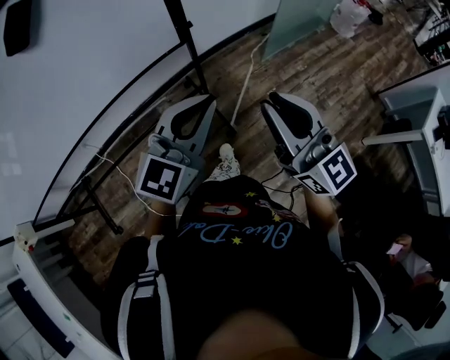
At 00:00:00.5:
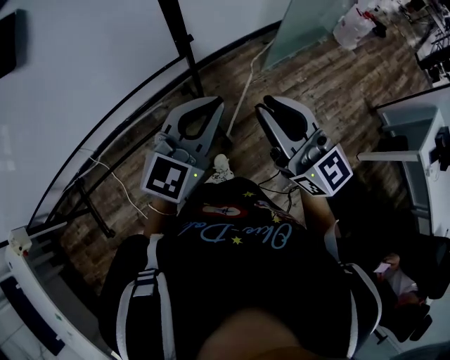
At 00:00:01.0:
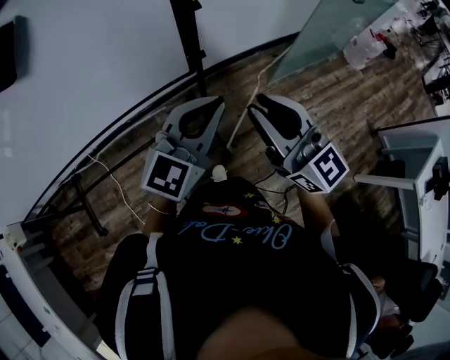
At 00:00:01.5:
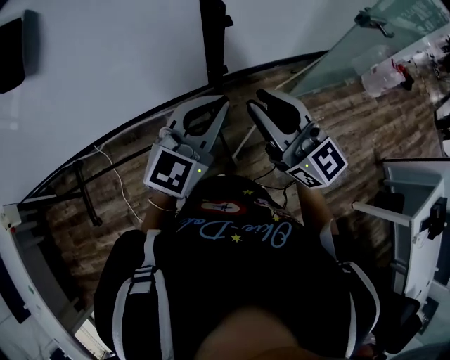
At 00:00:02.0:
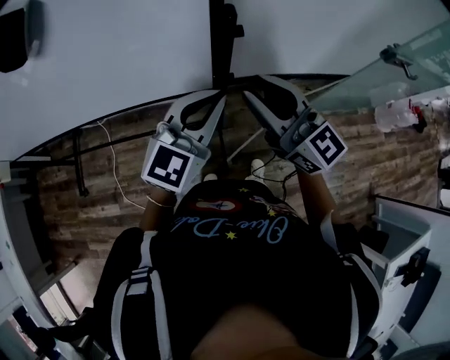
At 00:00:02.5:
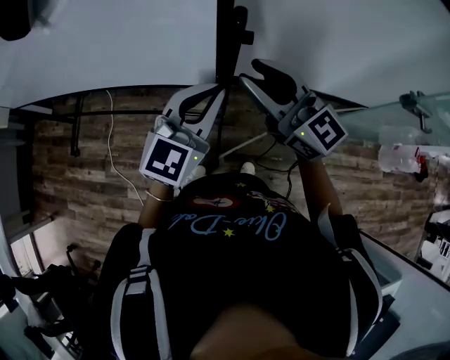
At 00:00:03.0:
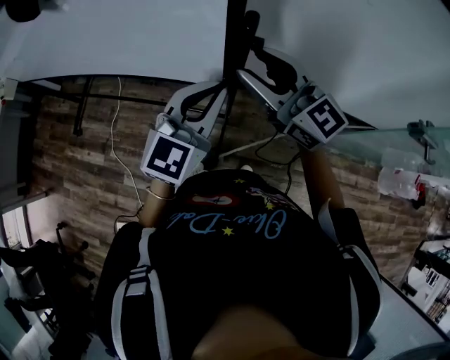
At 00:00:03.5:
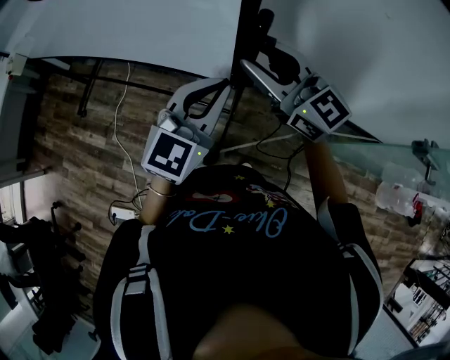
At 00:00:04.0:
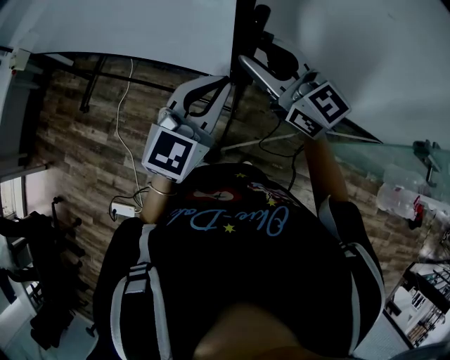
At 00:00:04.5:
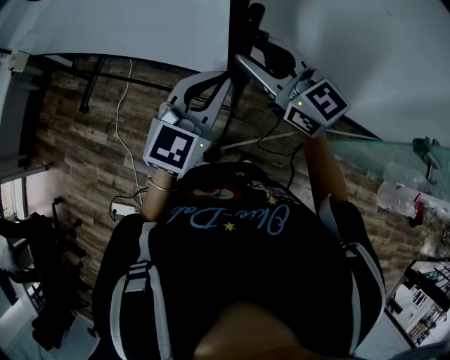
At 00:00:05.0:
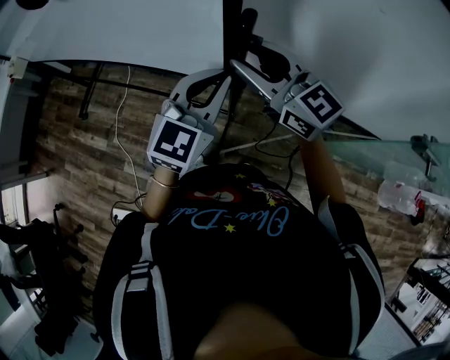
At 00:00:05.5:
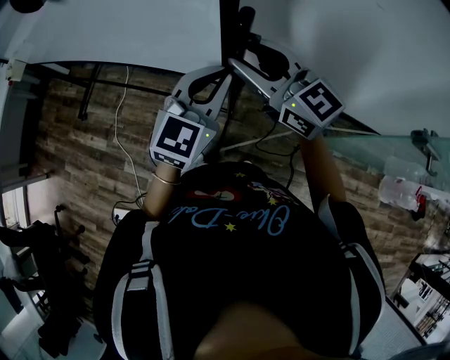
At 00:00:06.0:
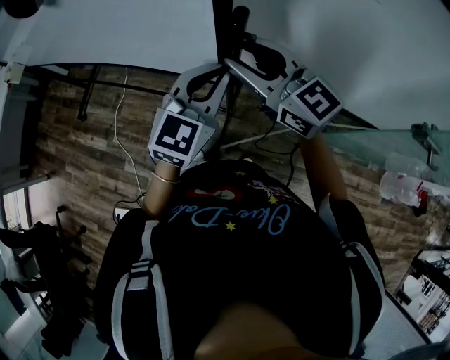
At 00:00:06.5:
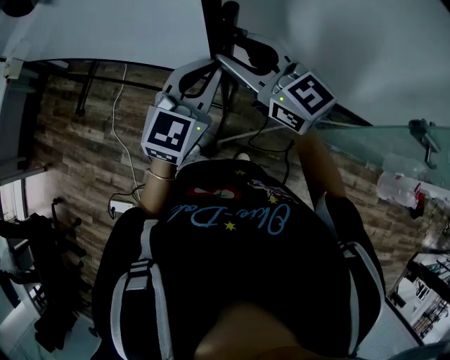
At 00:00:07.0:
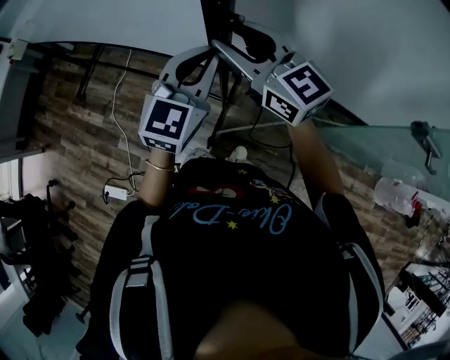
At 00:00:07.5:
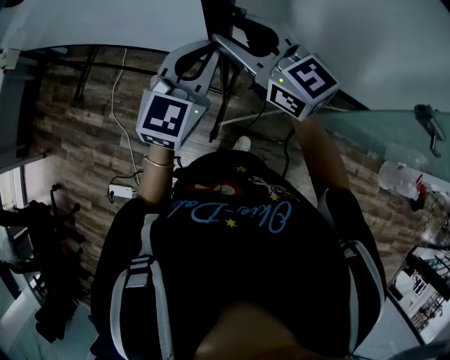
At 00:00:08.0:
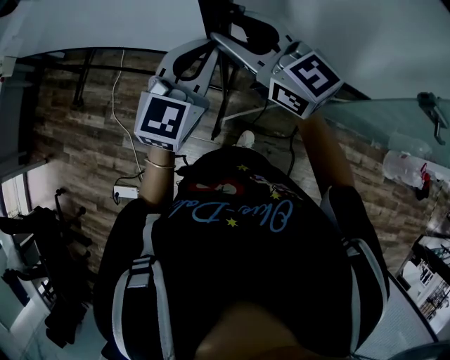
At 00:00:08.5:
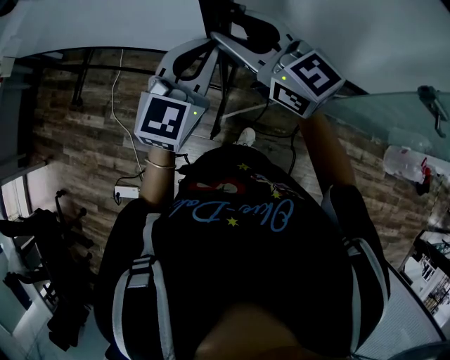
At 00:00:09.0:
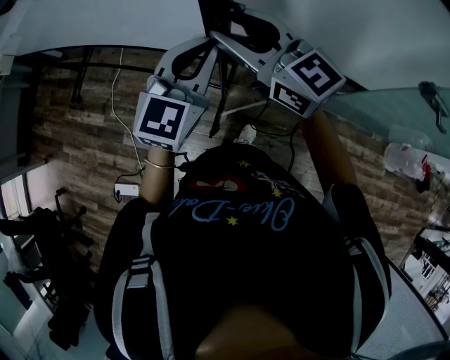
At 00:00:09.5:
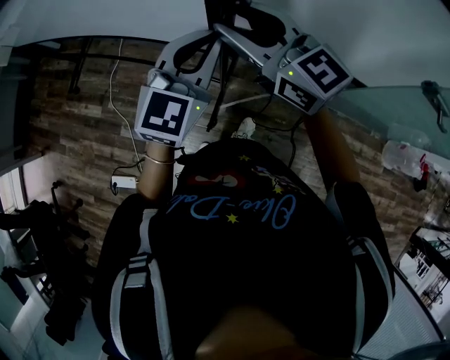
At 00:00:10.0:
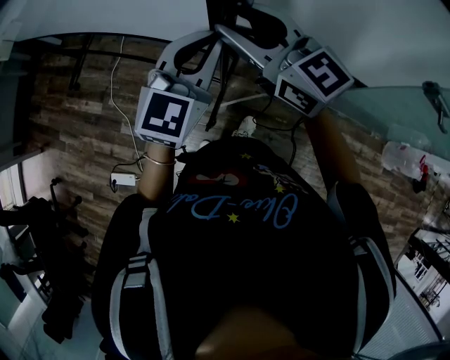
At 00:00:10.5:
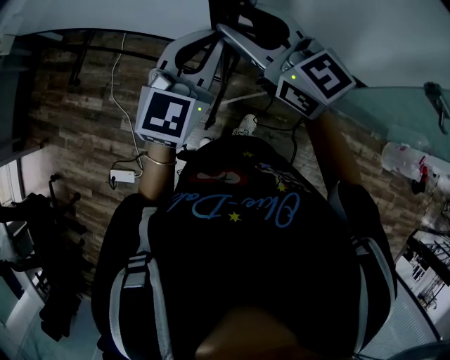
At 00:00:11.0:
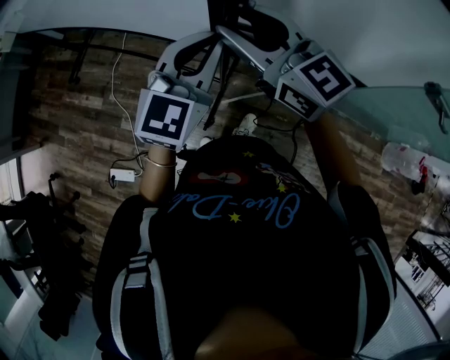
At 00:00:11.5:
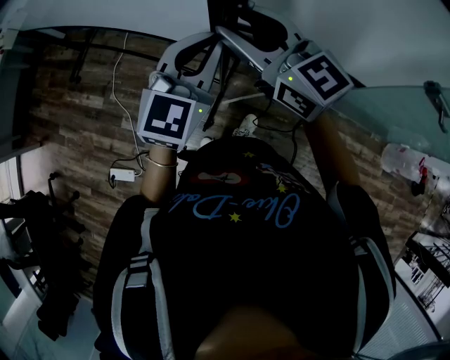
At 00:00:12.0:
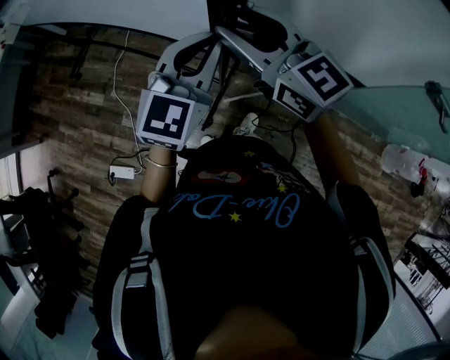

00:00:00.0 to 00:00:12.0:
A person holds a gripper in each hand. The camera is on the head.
00:00:00.0 to 00:00:02.0: The left gripper changes place by some 20 cm, and changes its angle by roughly 30 degrees; the right gripper shifts by approximately 25 cm, and rotates approximately 30 degrees.
00:00:02.0 to 00:00:04.0: The left gripper turns by roughly 30 degrees, while the right gripper changes place by approximately 10 cm, and swivels roughly 30 degrees.
00:00:04.0 to 00:00:08.0: The grippers move only a little.
00:00:08.0 to 00:00:10.0: The grippers move only a little.
00:00:10.0 to 00:00:12.0: The right gripper changes place by about 5 cm.

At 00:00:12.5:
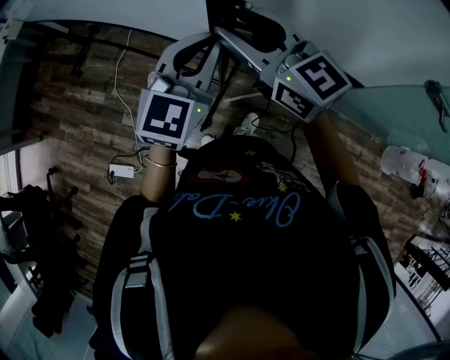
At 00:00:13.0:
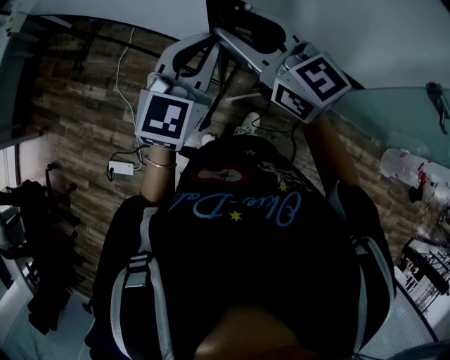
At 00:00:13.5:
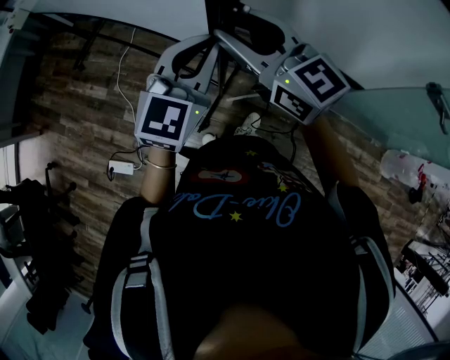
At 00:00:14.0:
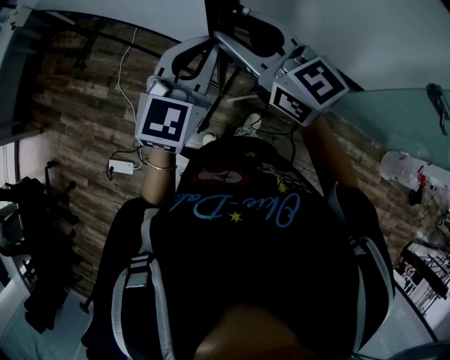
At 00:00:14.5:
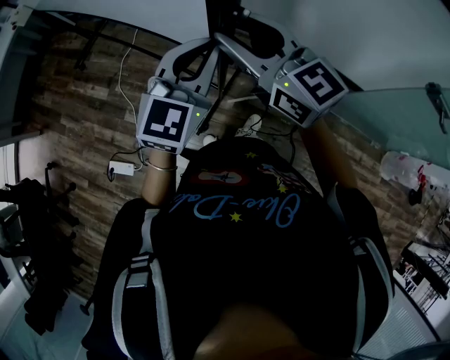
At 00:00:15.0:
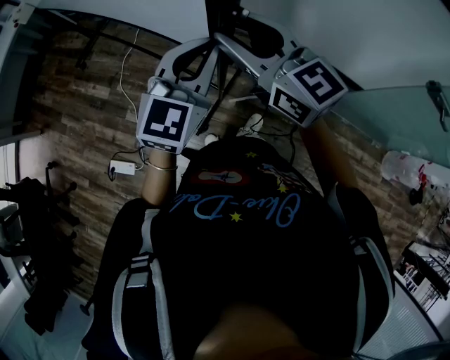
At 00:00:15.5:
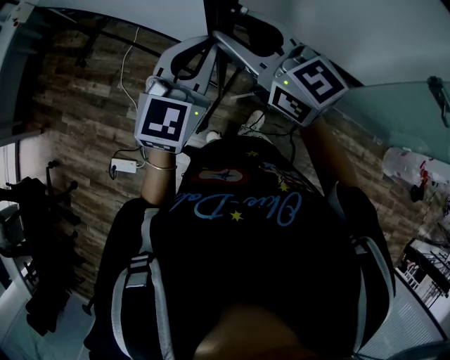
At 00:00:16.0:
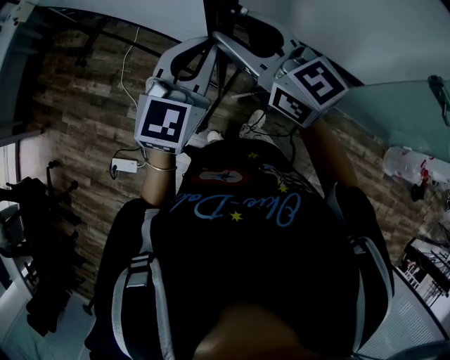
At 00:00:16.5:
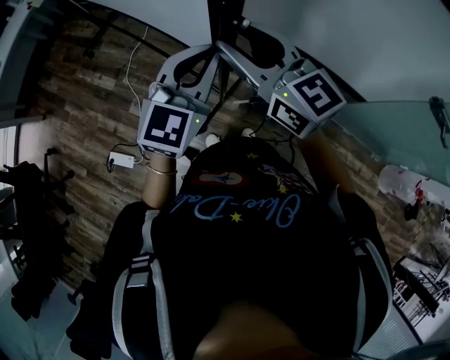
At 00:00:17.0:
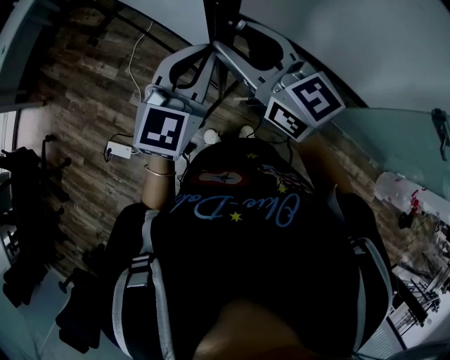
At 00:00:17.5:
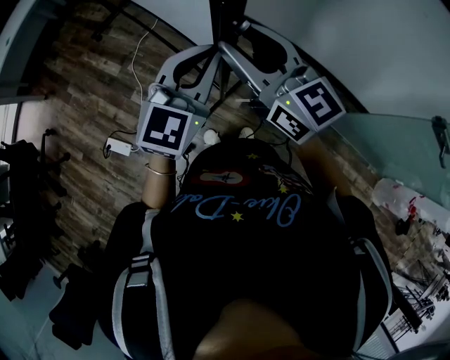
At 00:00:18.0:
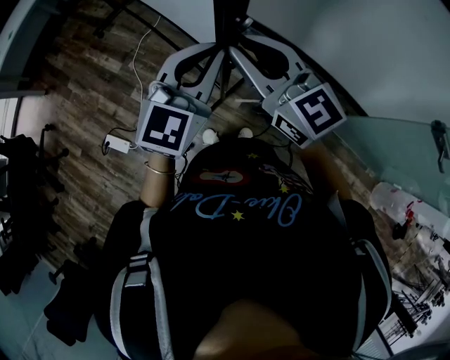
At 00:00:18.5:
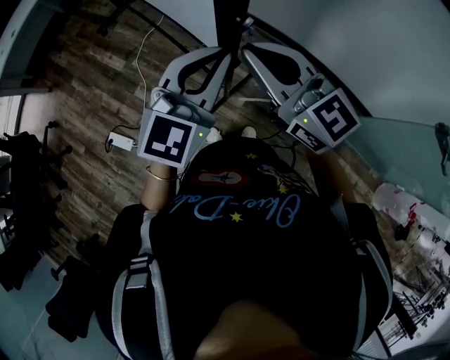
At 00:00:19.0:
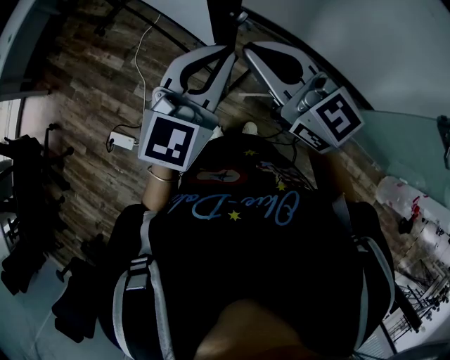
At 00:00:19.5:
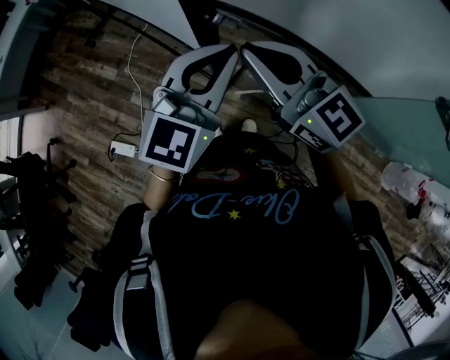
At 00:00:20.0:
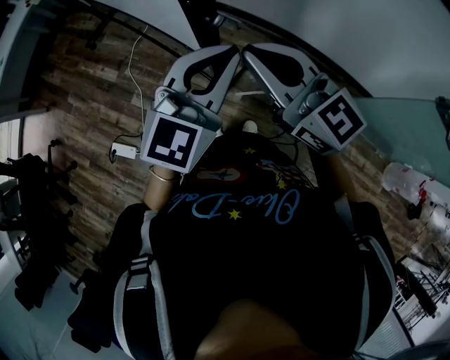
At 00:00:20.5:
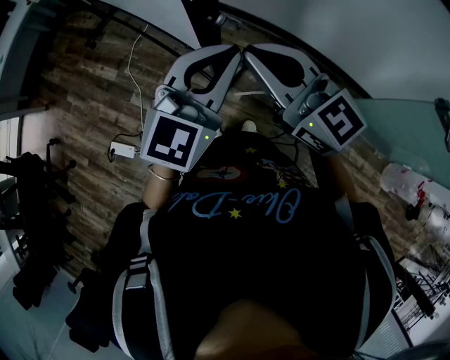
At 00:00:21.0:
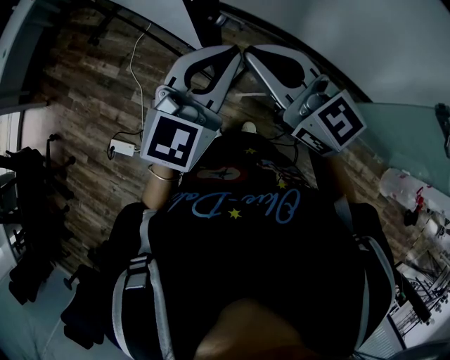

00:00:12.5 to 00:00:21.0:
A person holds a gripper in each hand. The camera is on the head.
00:00:12.5 to 00:00:14.5: The grippers make only small movements.
00:00:14.5 to 00:00:16.5: The grippers make only small movements.
00:00:16.5 to 00:00:19.0: The right gripper closes.
00:00:19.0 to 00:00:21.0: The grippers move only a little.

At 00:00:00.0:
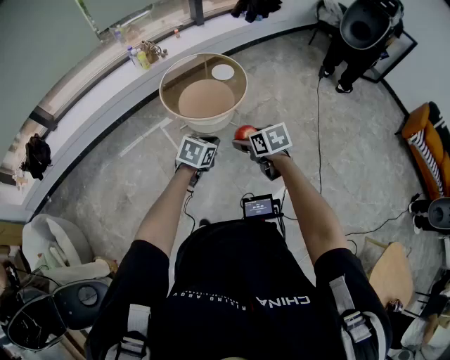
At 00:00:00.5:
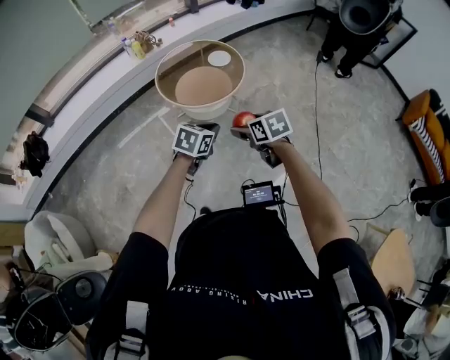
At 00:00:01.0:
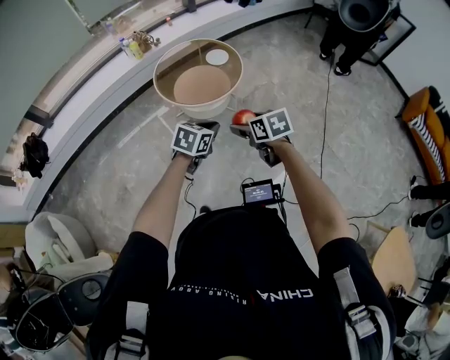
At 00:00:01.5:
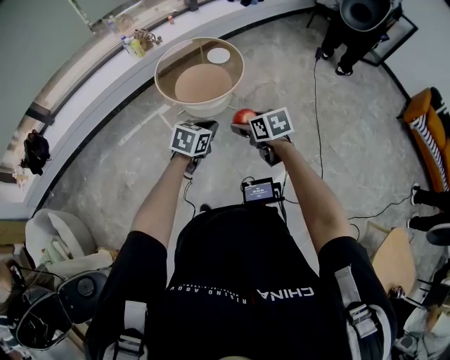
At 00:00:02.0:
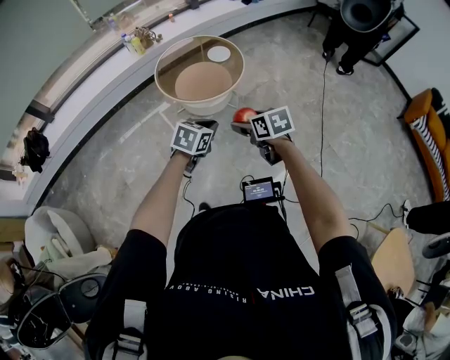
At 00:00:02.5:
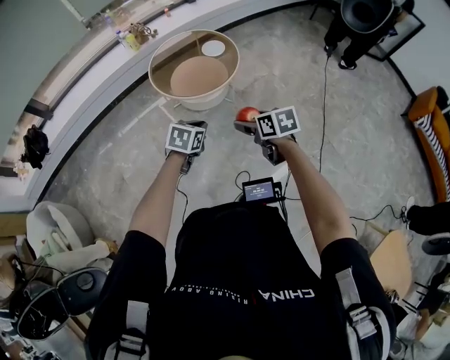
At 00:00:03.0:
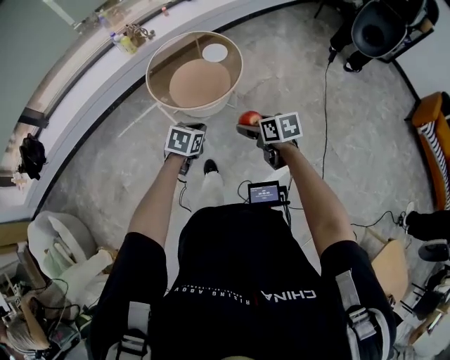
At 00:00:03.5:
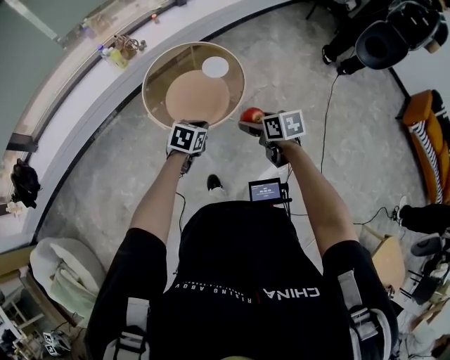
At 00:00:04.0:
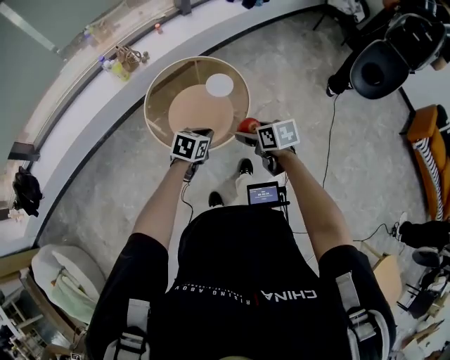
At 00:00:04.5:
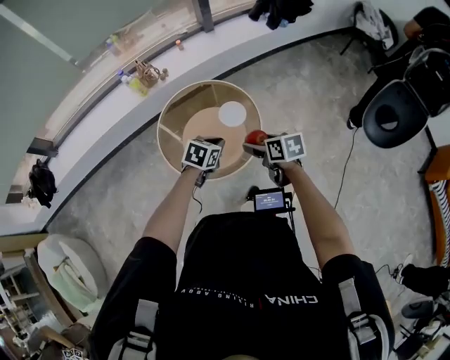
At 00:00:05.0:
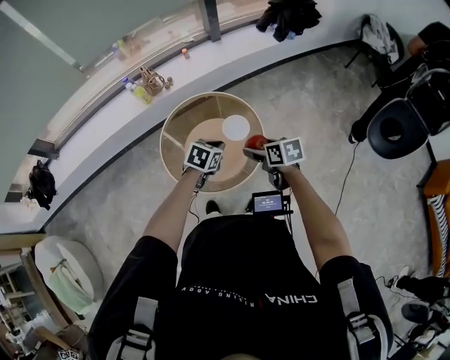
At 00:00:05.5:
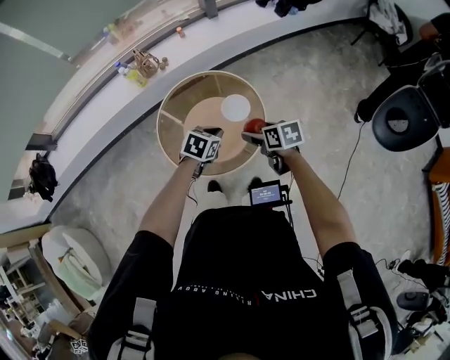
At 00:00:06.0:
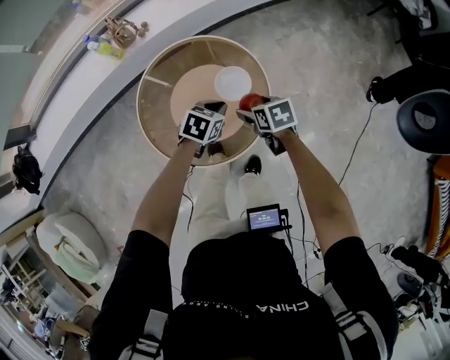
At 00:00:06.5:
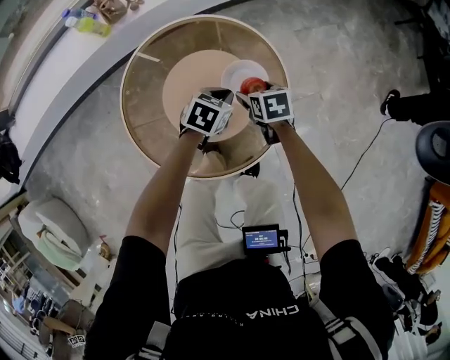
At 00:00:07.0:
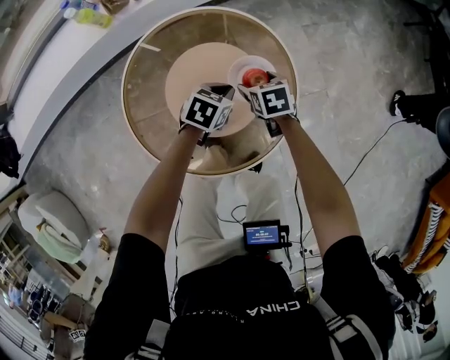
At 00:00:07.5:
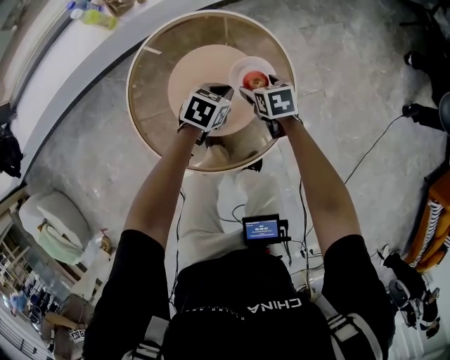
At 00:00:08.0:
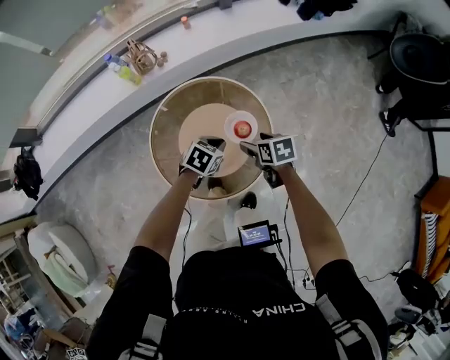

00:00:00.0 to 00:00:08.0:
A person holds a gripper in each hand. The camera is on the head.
00:00:00.0 to 00:00:02.0: The grippers move only a little.
00:00:02.0 to 00:00:04.0: Both grippers move forward, some 40 cm.
00:00:04.0 to 00:00:06.0: The grippers both shift forward and downward by some 35 cm.
00:00:06.0 to 00:00:08.0: The left gripper goes downward and returns, roughly 20 cm each way. Meanwhile the right gripper moves approximately 20 cm downward and comes back.
